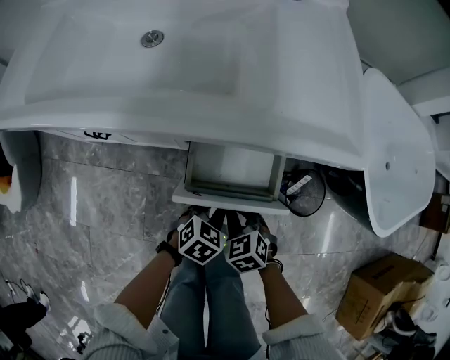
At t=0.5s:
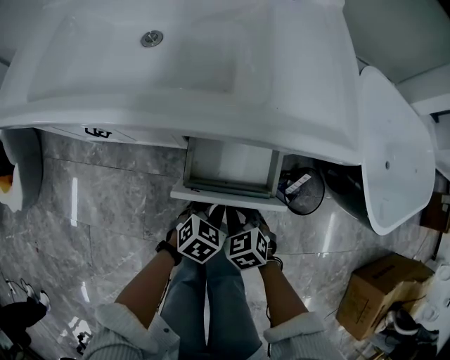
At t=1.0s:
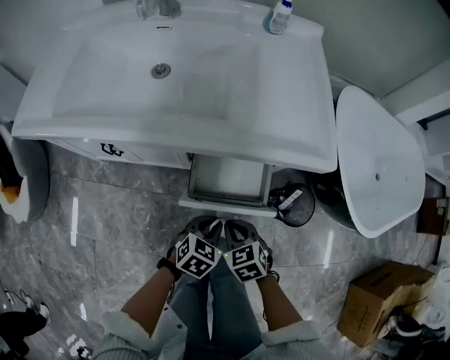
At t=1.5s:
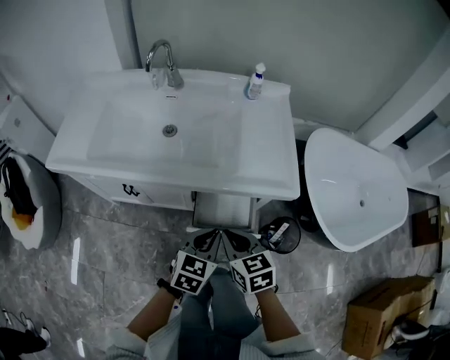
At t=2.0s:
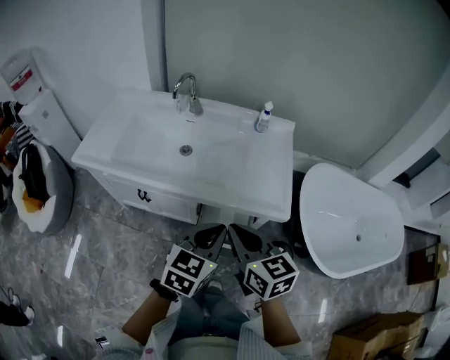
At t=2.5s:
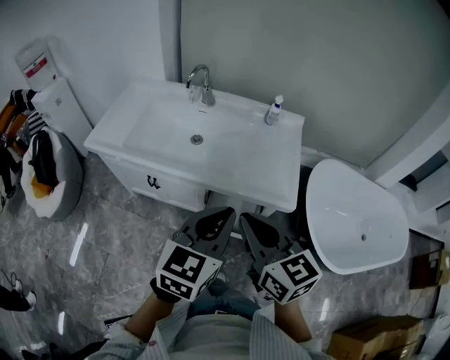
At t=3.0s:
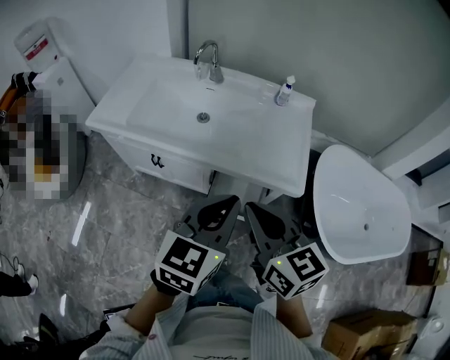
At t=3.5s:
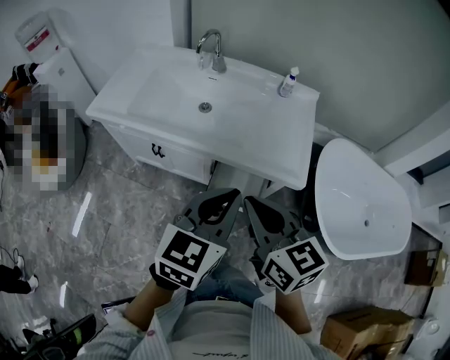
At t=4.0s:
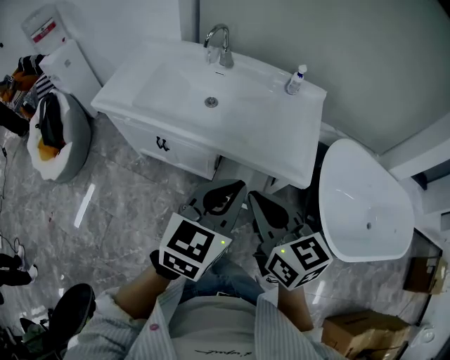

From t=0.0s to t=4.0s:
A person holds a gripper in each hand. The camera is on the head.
From t=0.0s to t=2.0s: Both grippers travel together upward, about 40 cm. The right gripper angles its fingers upward, by roughly 40 degrees. Meanwhile the left gripper changes its angle by about 30 degrees.
From t=2.0s to t=4.0s: Both grippers move upward, some 5 cm.

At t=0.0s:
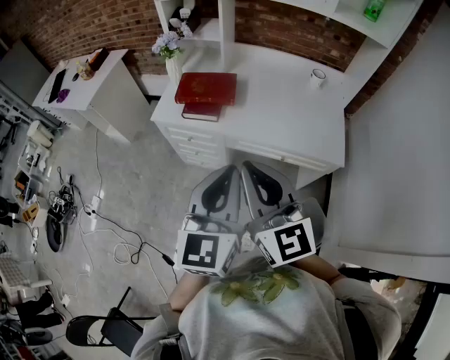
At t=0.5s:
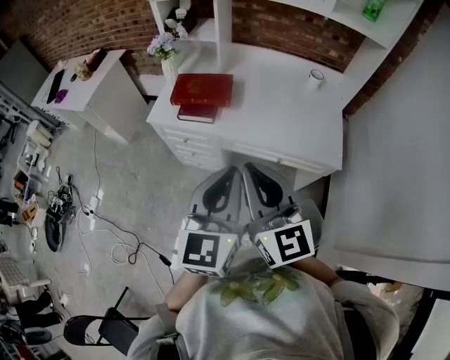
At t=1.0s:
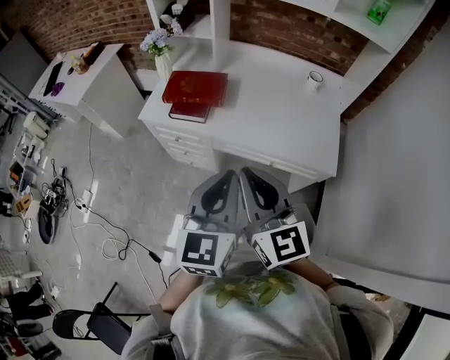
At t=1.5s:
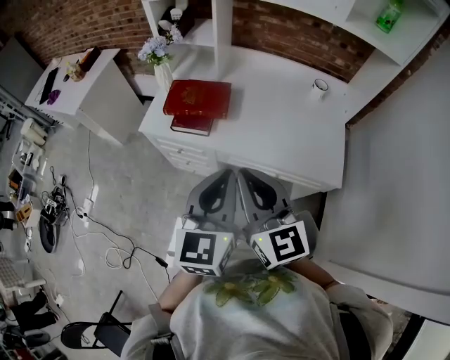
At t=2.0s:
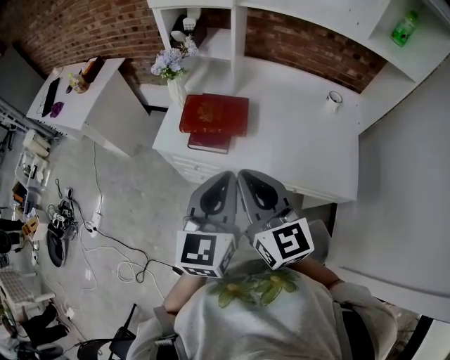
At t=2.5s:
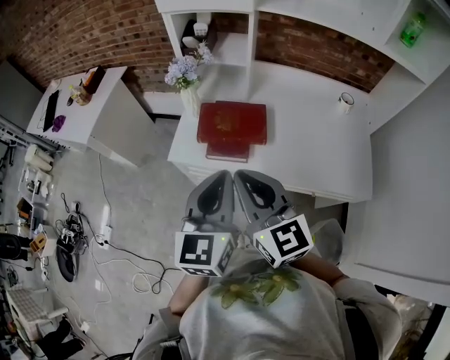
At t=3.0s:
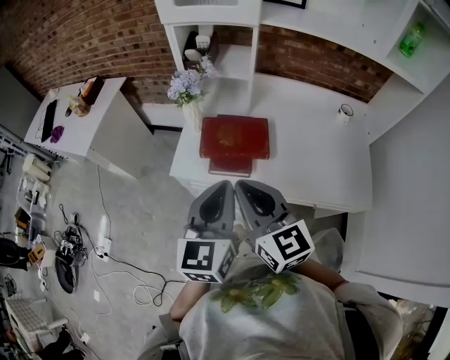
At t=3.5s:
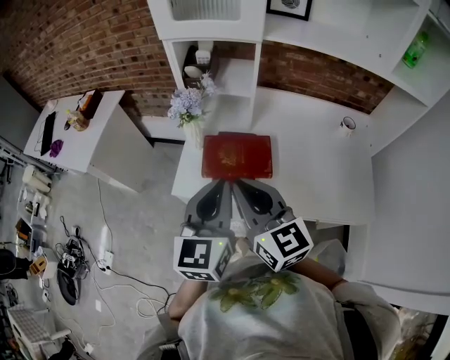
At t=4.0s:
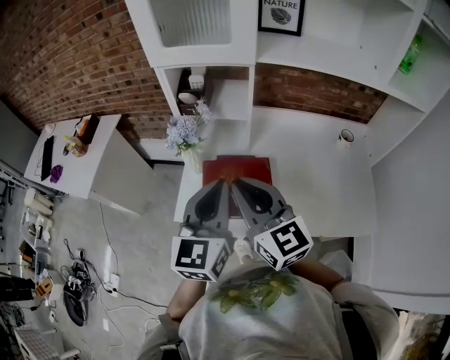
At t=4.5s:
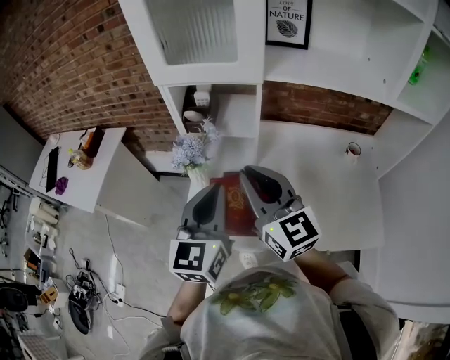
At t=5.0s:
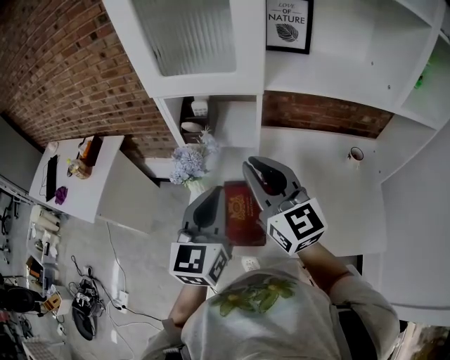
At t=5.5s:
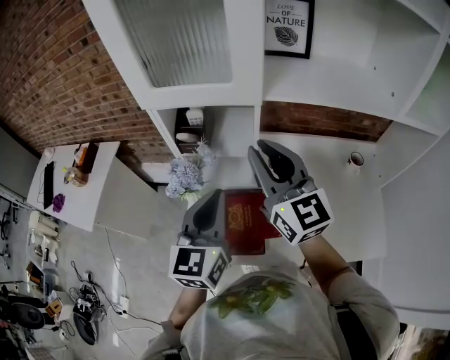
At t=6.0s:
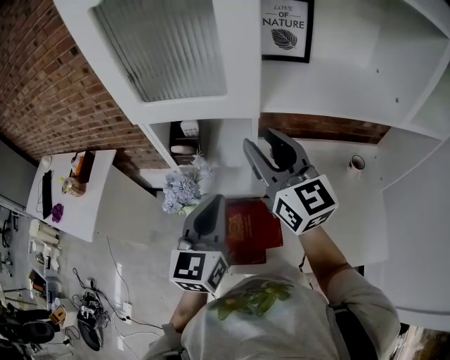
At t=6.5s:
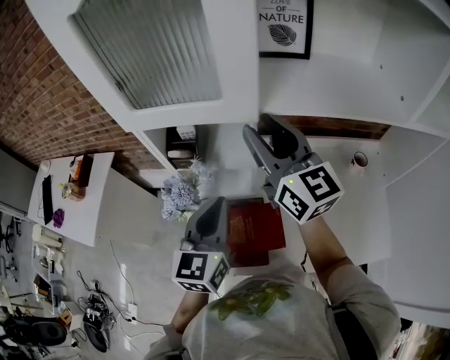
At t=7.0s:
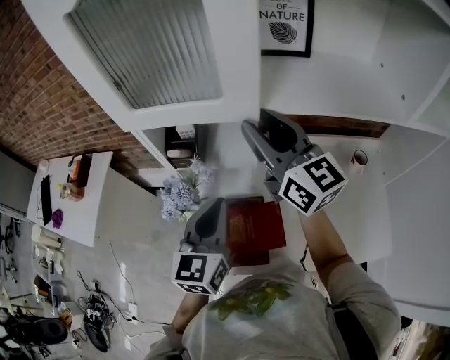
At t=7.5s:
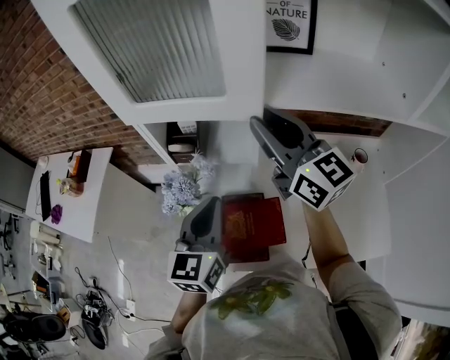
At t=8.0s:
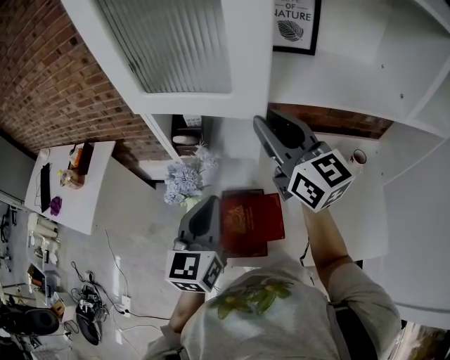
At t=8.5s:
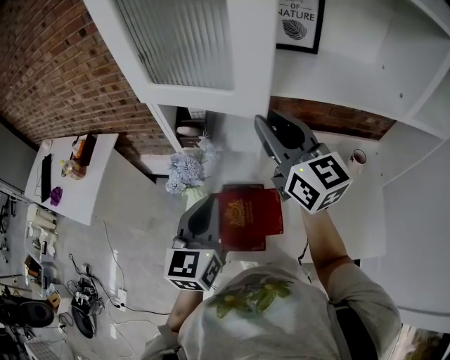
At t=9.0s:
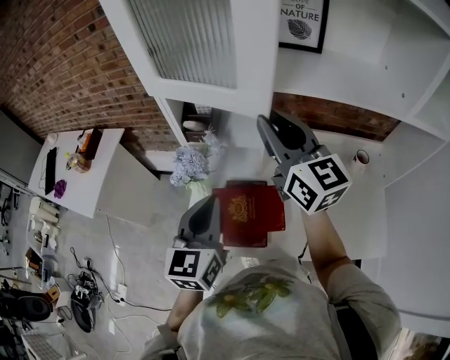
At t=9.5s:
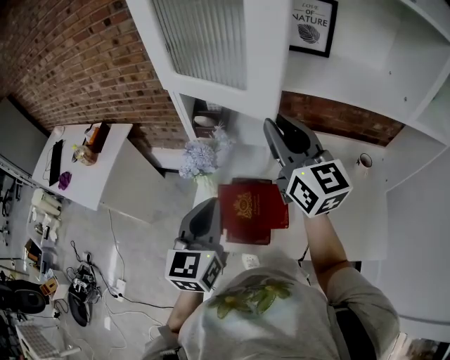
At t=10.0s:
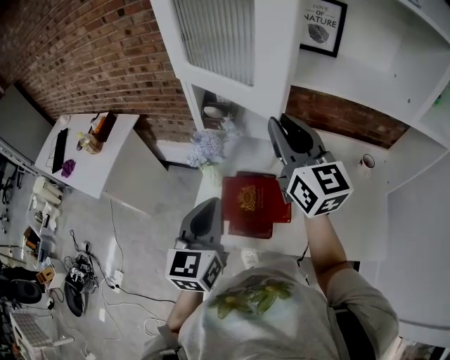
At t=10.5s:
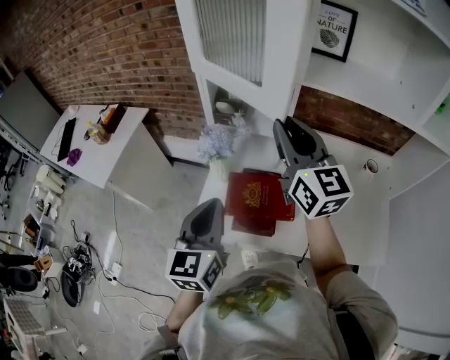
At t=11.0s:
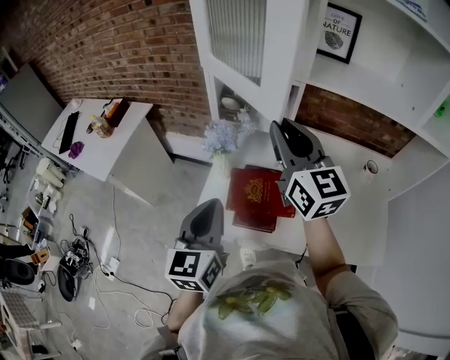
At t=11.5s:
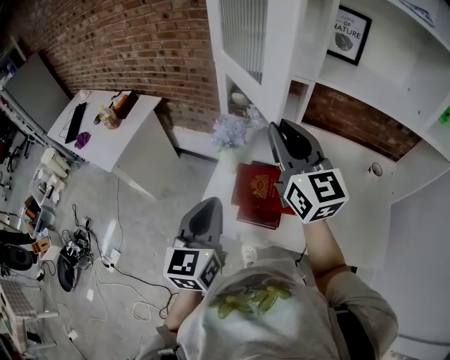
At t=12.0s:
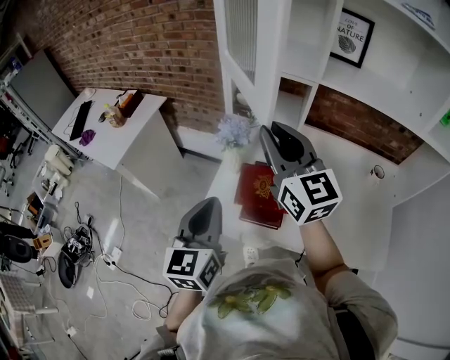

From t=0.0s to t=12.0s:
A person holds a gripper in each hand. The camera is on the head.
From t=0.0s to t=2.0s: The two grippers go approximately 15 cm forward.
From t=2.0s to t=4.0s: Both grippers travel together forward and to the left, roughly 25 cm.
From t=4.0s to t=6.0s: The right gripper is displaced forward by roughly 25 cm, and opens its fingers, while the left gripper heads forward, covering about 15 cm.
From t=6.0s to t=8.0s: The grippers make only small movements.
From t=8.0s to t=10.0s: The left gripper shifts roughly 10 cm backward and to the left. The right gripper travels backward by roughly 5 cm.
From t=10.0s to t=12.0s: The left gripper goes some 10 cm backward and to the left. The right gripper heads to the left and backward, covering roughly 10 cm.

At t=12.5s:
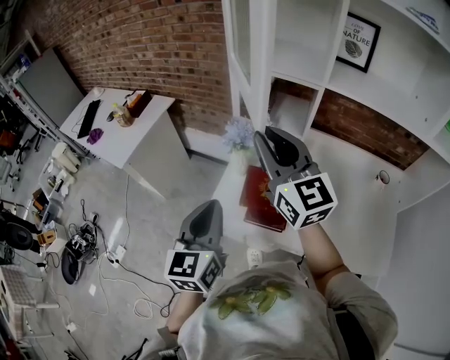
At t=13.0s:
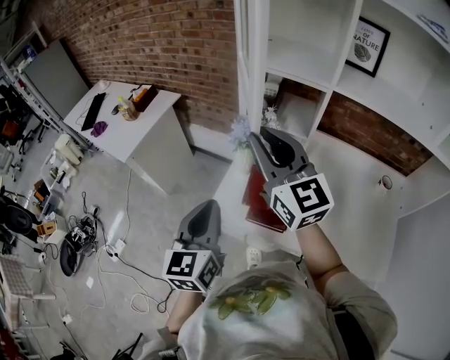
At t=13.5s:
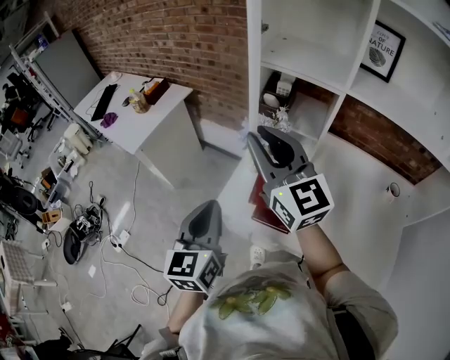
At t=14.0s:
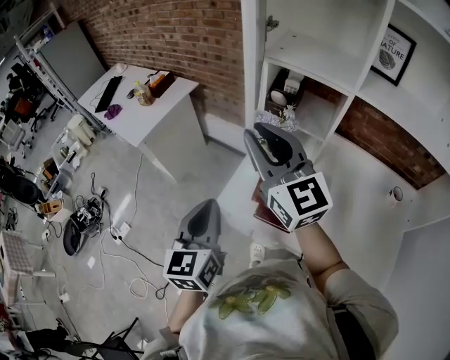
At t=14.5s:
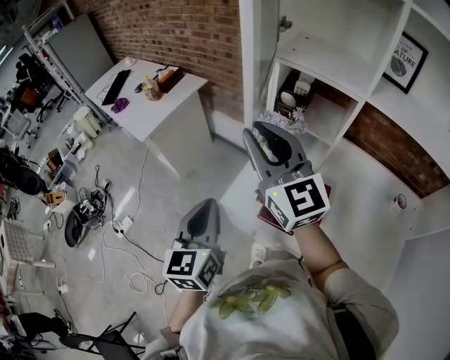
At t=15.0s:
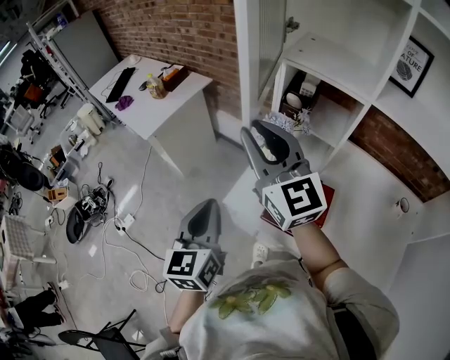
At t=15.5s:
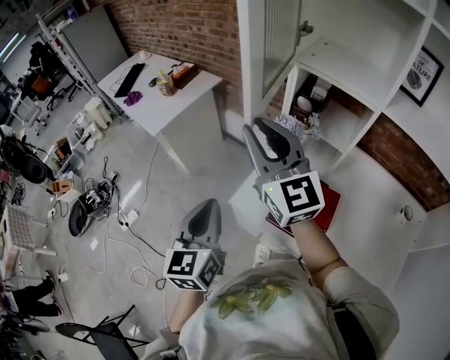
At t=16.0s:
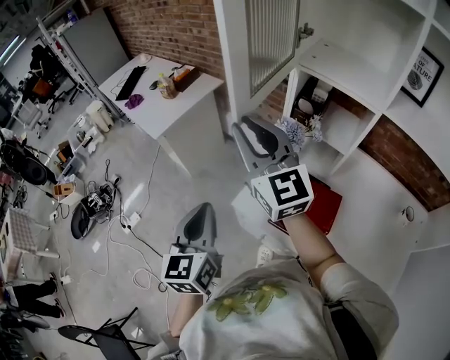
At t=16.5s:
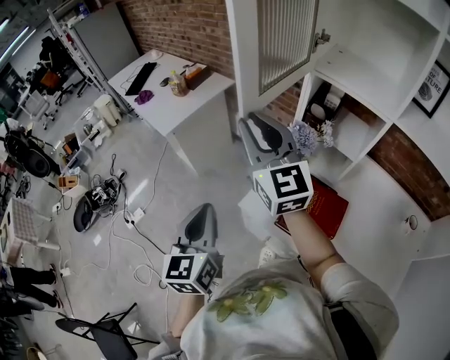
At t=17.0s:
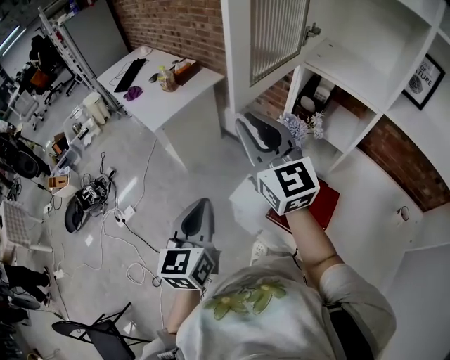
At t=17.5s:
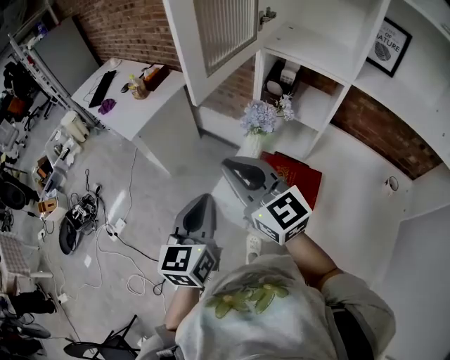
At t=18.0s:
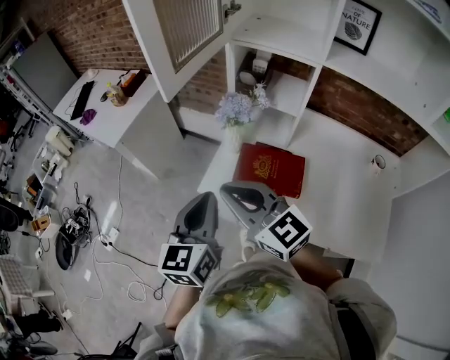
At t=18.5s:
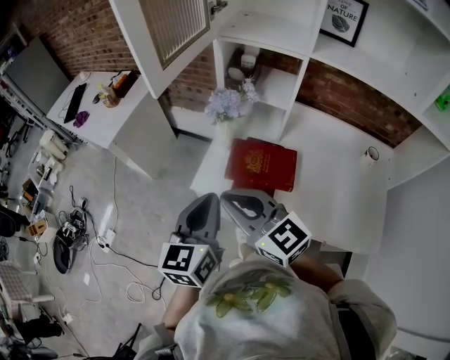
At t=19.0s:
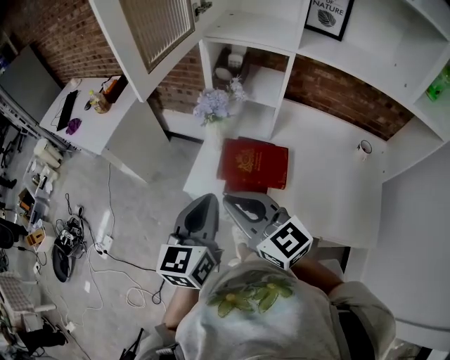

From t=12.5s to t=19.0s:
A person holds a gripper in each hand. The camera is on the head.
From t=12.5s to t=14.5s: The left gripper heads to the left, covering some 5 cm, while the right gripper moves to the left, approximately 10 cm.
From t=14.5s to t=17.0s: The two grippers go about 5 cm to the left.
From t=17.0s to t=19.0s: The right gripper moves backward and downward, roughly 25 cm. The left gripper shifts roughly 15 cm to the right and backward, and rotates some 30 degrees.

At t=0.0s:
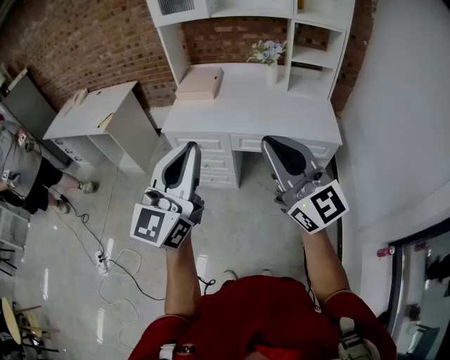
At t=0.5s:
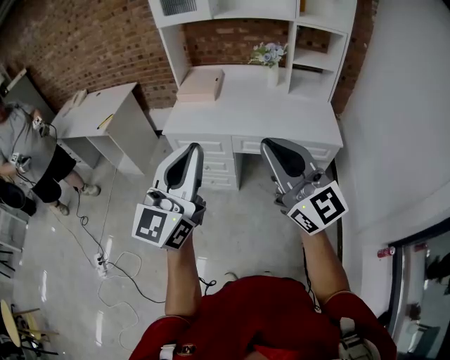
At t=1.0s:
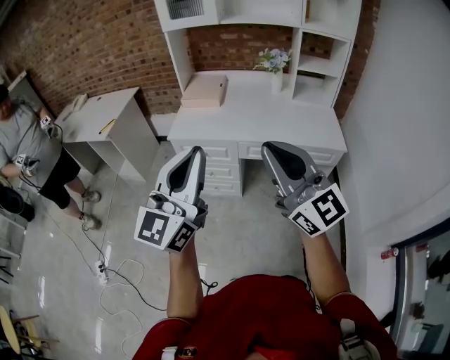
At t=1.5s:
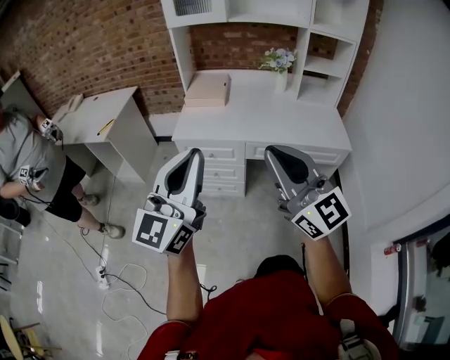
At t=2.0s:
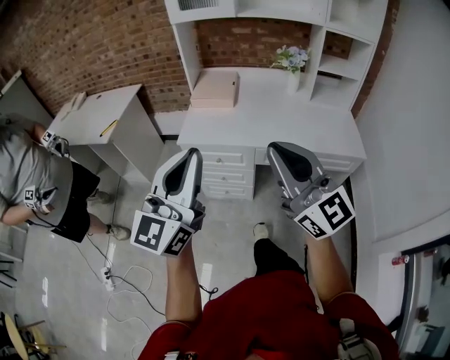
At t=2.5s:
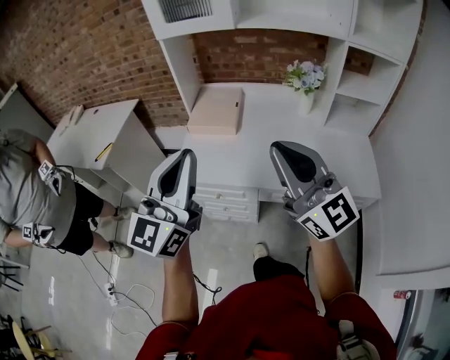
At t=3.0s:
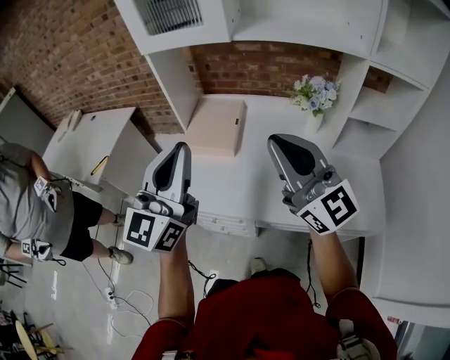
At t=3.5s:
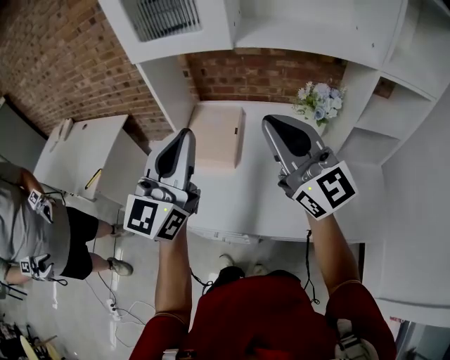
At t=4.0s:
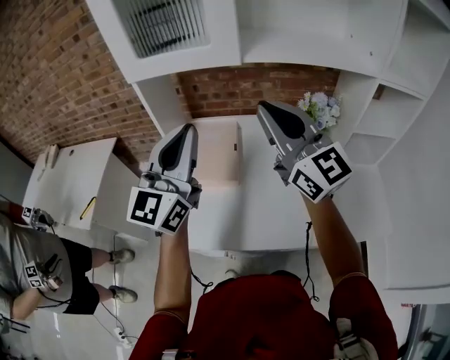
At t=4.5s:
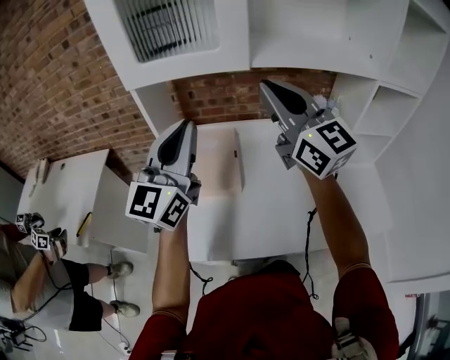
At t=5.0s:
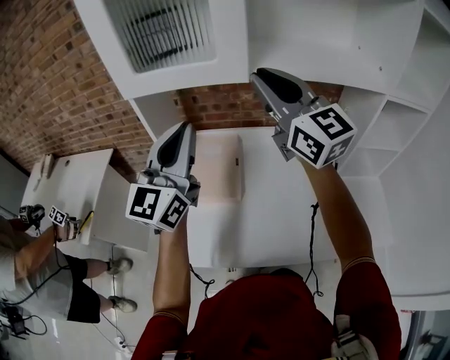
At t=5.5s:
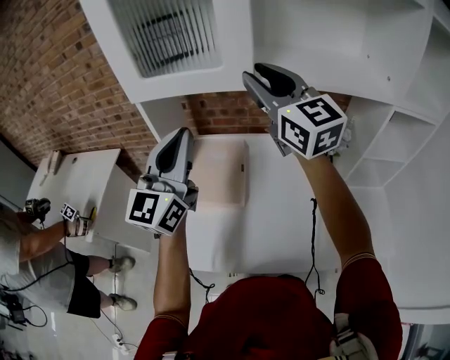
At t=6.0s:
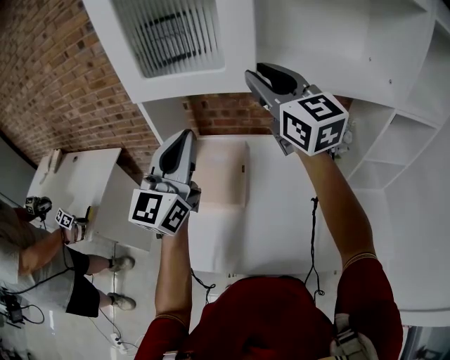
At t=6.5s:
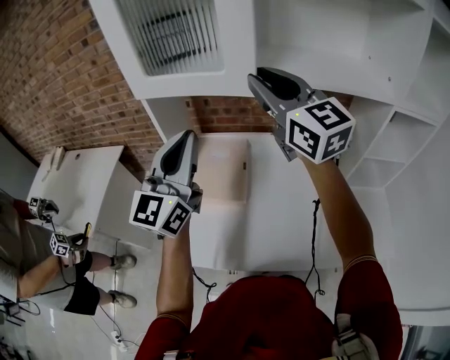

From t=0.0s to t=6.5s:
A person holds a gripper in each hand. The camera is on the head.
From t=0.0s to t=2.0s: The two grippers go about 15 cm to the left and forward.
From t=2.0s to t=4.5s: The pair of grippers is taken forward, some 60 cm.
From t=4.5s to t=6.5s: The right gripper travels forward by some 5 cm.
